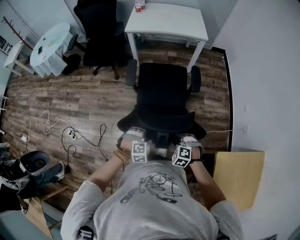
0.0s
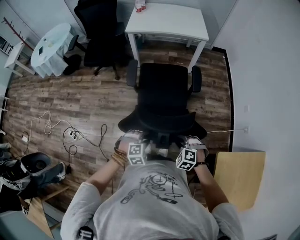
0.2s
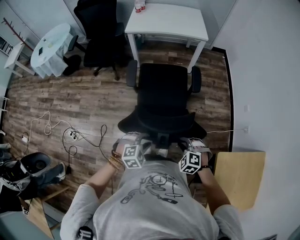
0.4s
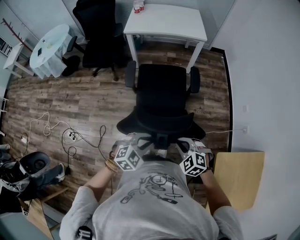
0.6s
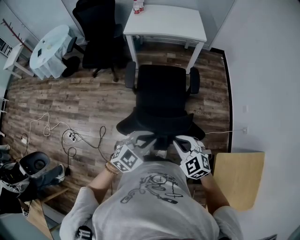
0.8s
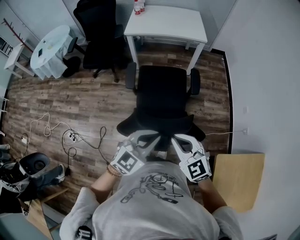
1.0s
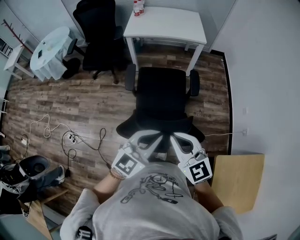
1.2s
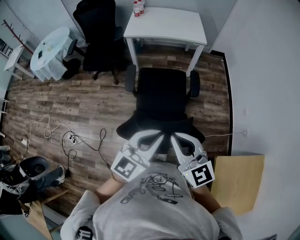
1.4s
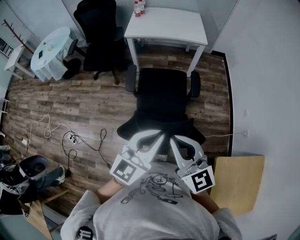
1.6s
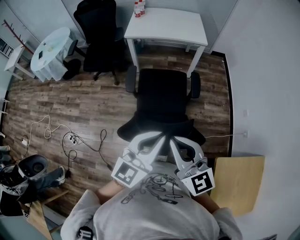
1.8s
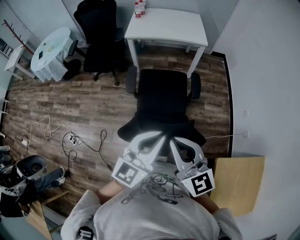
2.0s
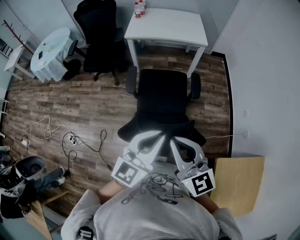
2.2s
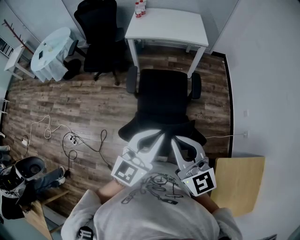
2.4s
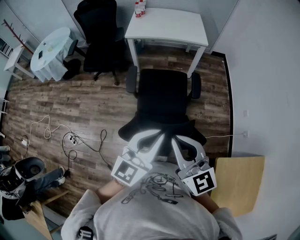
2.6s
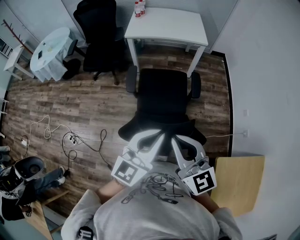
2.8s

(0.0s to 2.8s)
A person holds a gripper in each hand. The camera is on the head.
0.0s - 1.4s: Both grippers travel together upward, some 35 cm. The right gripper tips its fingers upward by some 60 degrees, and closes; the left gripper tilts its fingers about 60 degrees upward, and closes up.
1.4s - 2.8s: There are only small adjustments of the grippers.

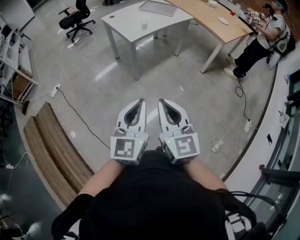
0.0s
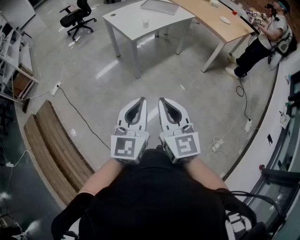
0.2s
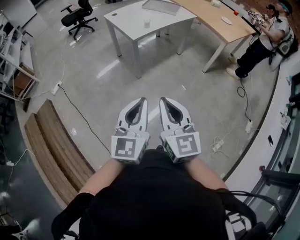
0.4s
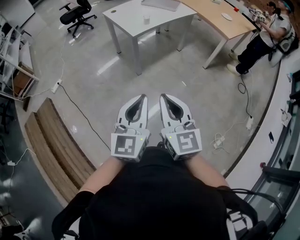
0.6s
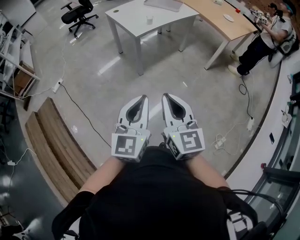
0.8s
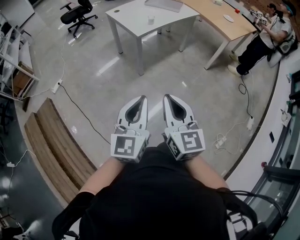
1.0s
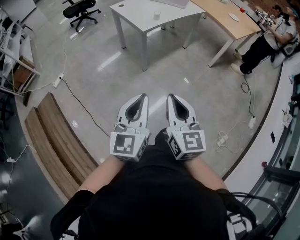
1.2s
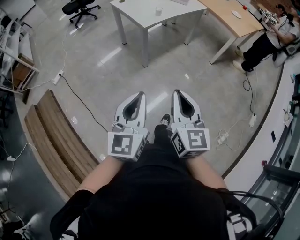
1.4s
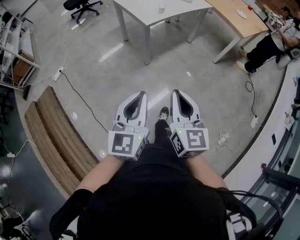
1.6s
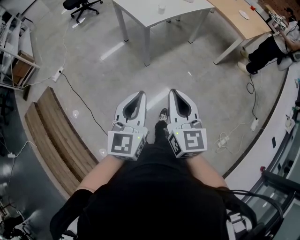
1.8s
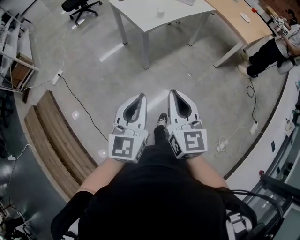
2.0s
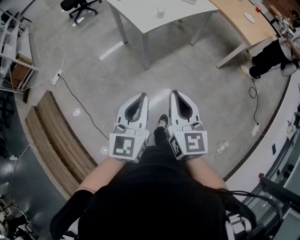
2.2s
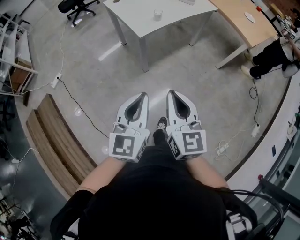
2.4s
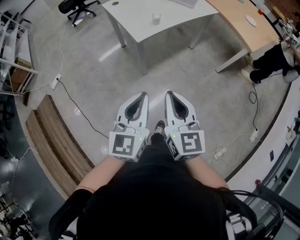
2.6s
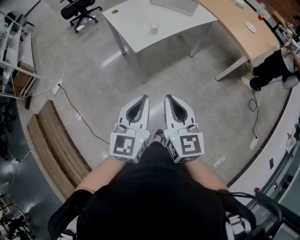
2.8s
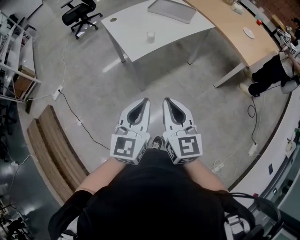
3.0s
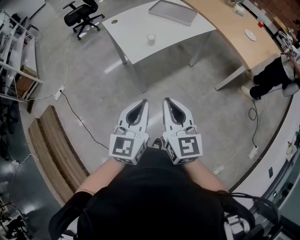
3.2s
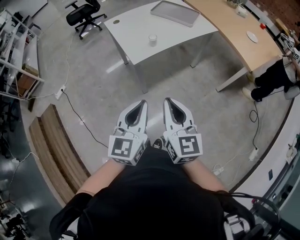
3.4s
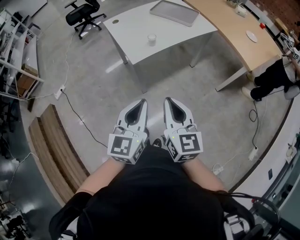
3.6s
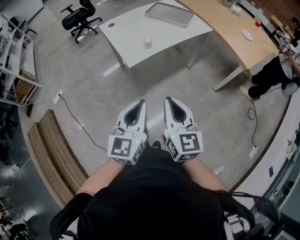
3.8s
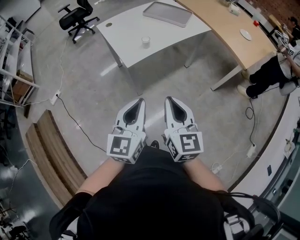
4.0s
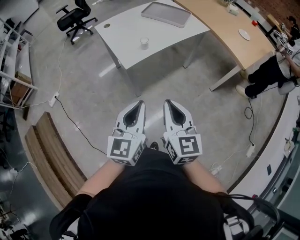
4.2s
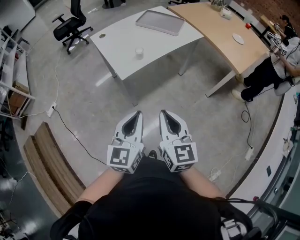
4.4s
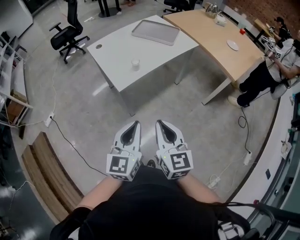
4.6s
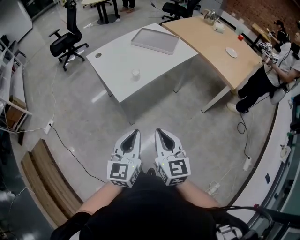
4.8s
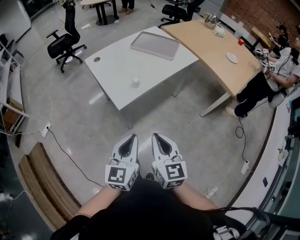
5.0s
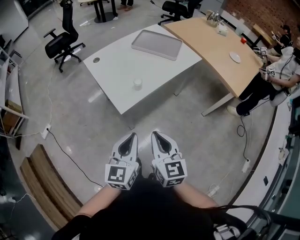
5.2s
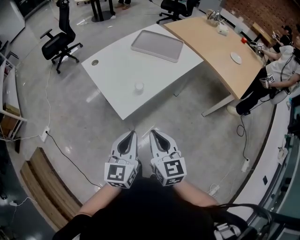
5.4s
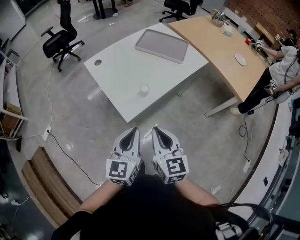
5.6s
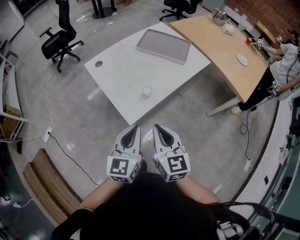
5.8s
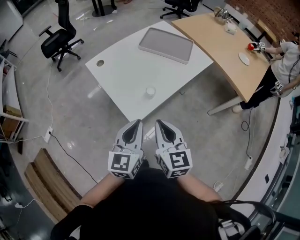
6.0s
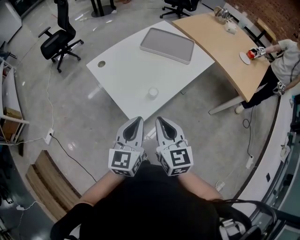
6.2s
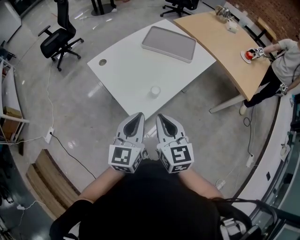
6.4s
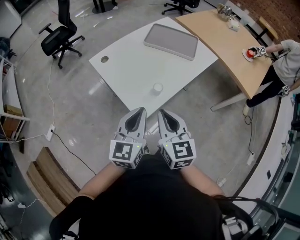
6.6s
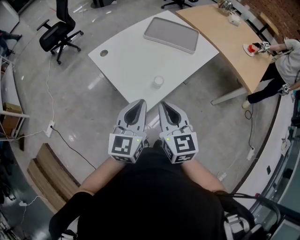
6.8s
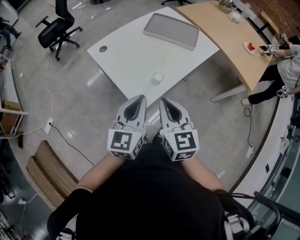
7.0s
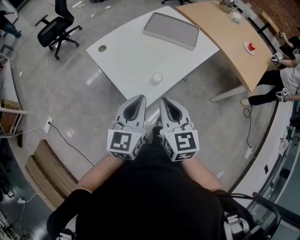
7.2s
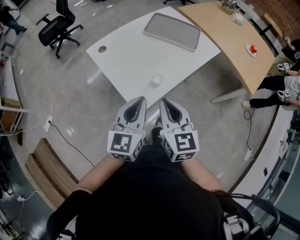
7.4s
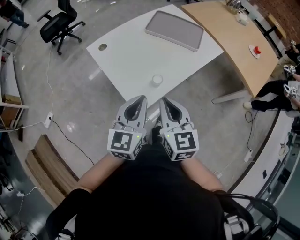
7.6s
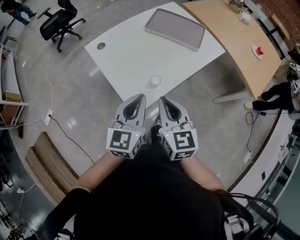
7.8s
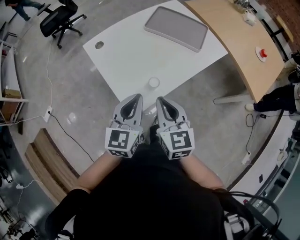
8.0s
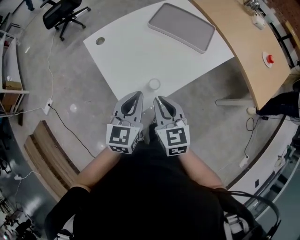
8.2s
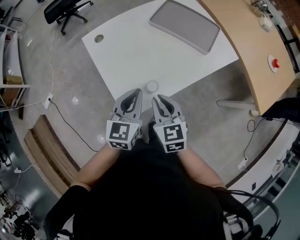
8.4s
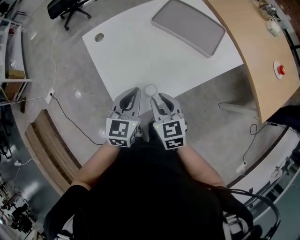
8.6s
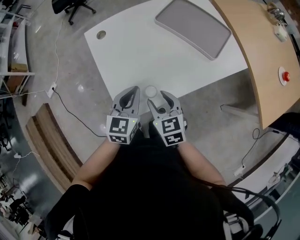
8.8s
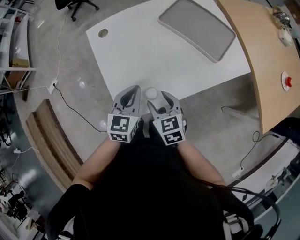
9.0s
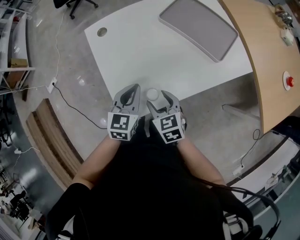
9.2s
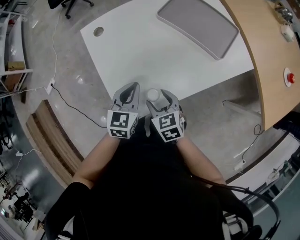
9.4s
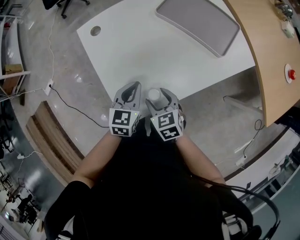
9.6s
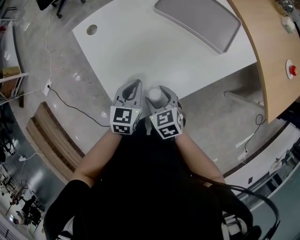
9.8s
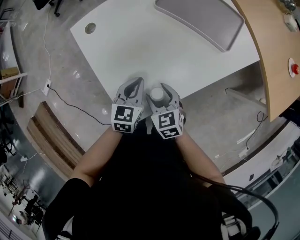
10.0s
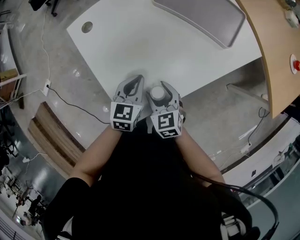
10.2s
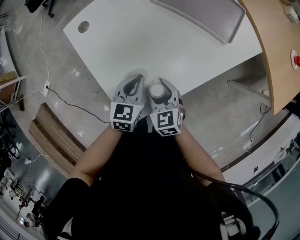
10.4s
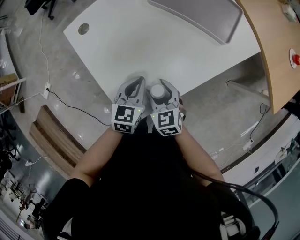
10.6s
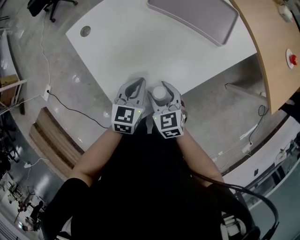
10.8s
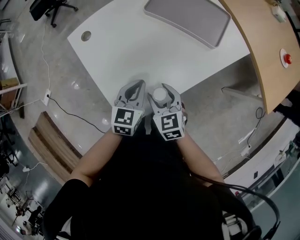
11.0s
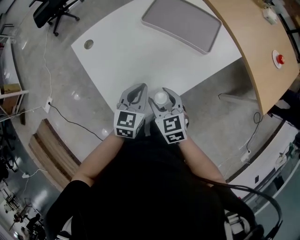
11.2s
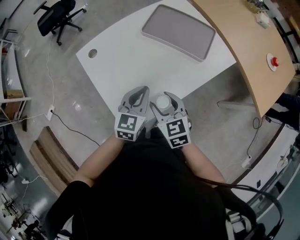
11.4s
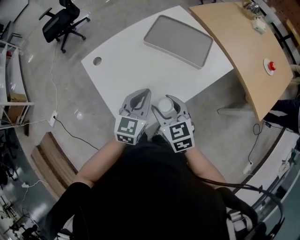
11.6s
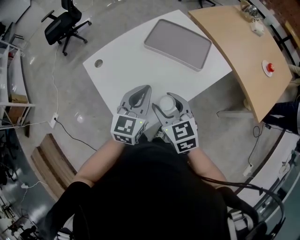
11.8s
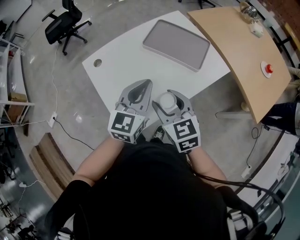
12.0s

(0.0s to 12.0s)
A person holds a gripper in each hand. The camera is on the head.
0.0s - 1.6s: The left gripper shifts some 10 cm to the left; the right gripper heads forward, downward and to the left, covering some 10 cm.
1.6s - 3.0s: The right gripper goes roughly 30 cm forward. The left gripper moves forward and to the right, roughly 35 cm.
3.0s - 4.4s: The right gripper changes place by some 5 cm. The left gripper moves forward, approximately 5 cm.
4.4s - 6.0s: The left gripper shifts some 30 cm forward; the right gripper shifts some 30 cm forward and to the left.
6.0s - 7.6s: Both grippers travel together forward, roughly 5 cm.
7.6s - 9.0s: The right gripper shifts roughly 25 cm downward and forward, swivels some 40 degrees, and opens its fingers; the left gripper is displaced forward and downward by approximately 25 cm, and swivels approximately 20 degrees.
9.0s - 10.4s: Both grippers travel together downward, roughly 10 cm.
10.4s - 12.0s: The grippers both shift upward by roughly 25 cm. The left gripper rotates about 30 degrees.

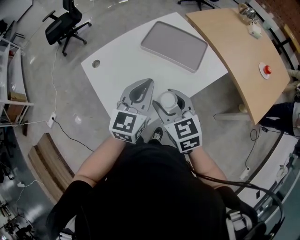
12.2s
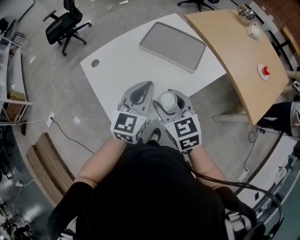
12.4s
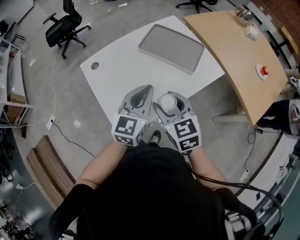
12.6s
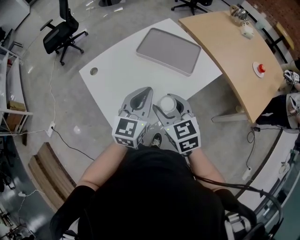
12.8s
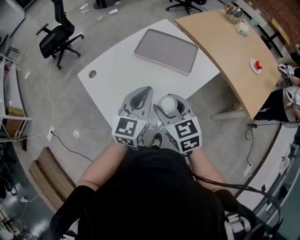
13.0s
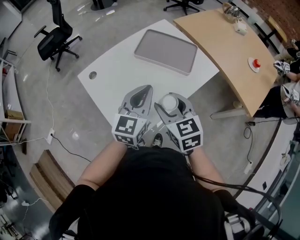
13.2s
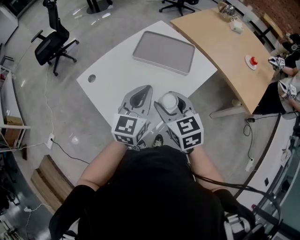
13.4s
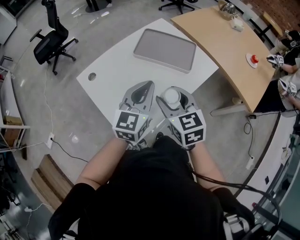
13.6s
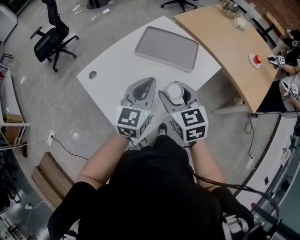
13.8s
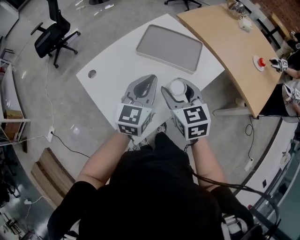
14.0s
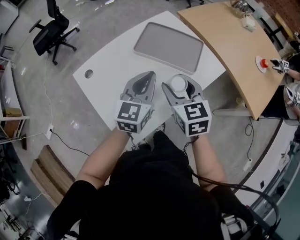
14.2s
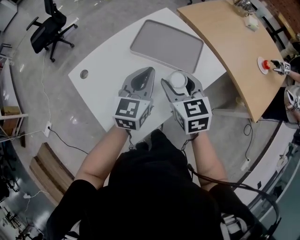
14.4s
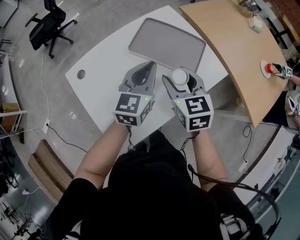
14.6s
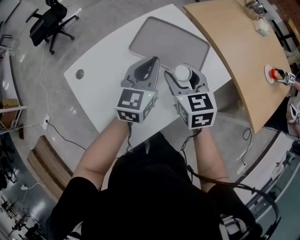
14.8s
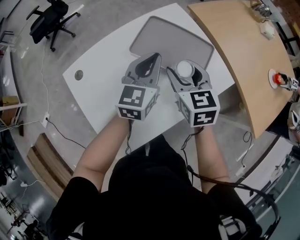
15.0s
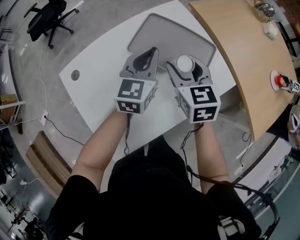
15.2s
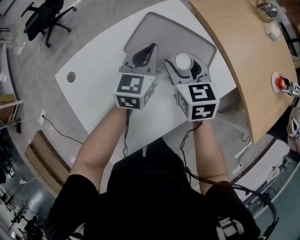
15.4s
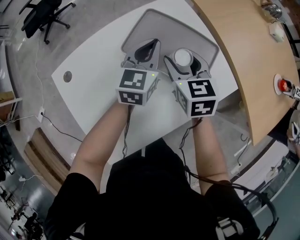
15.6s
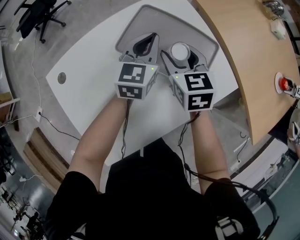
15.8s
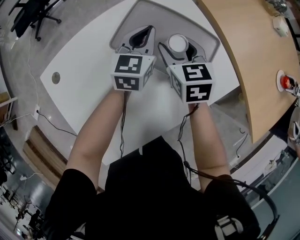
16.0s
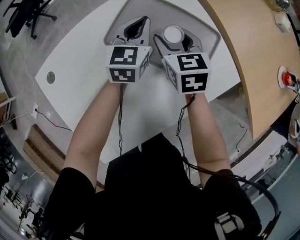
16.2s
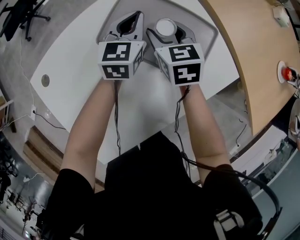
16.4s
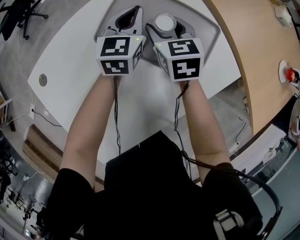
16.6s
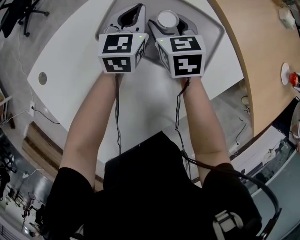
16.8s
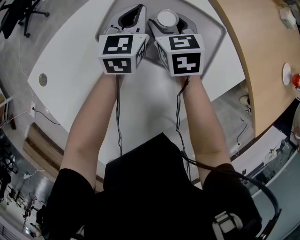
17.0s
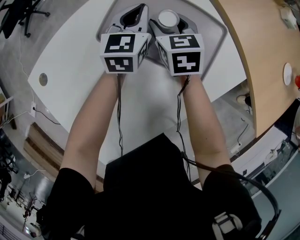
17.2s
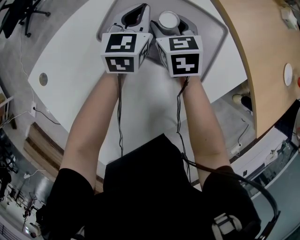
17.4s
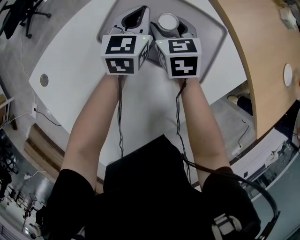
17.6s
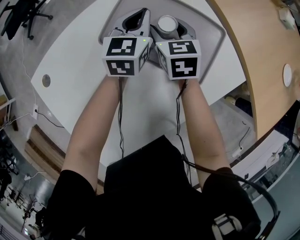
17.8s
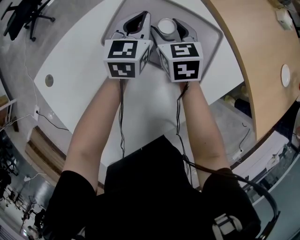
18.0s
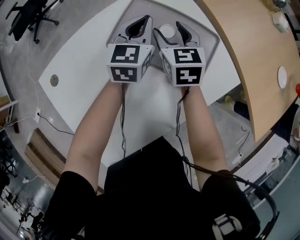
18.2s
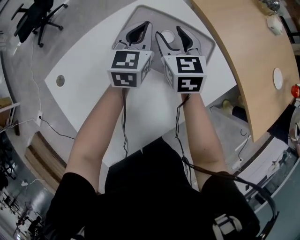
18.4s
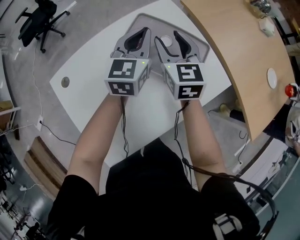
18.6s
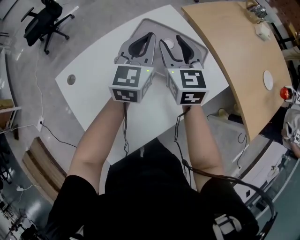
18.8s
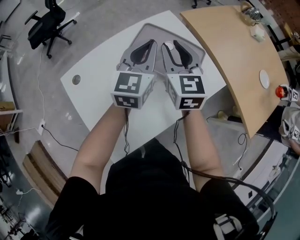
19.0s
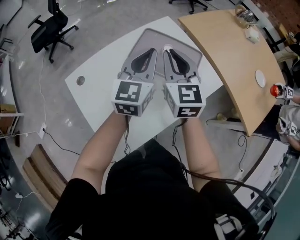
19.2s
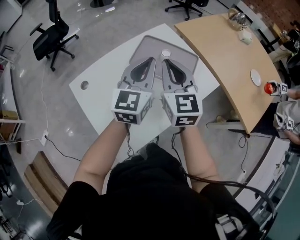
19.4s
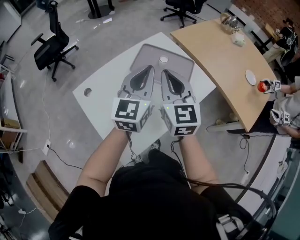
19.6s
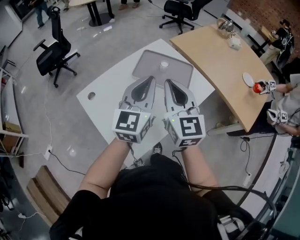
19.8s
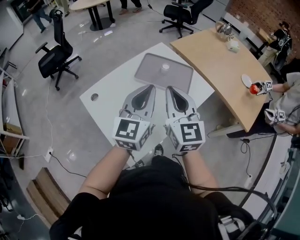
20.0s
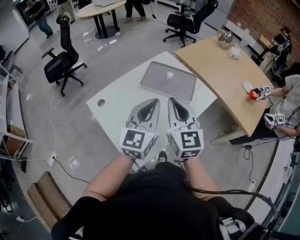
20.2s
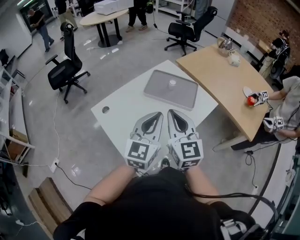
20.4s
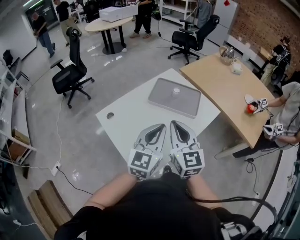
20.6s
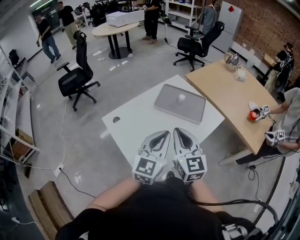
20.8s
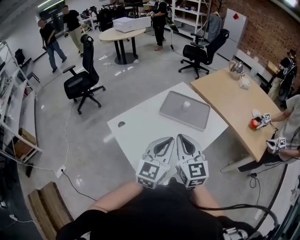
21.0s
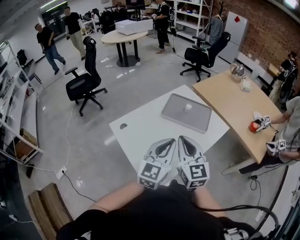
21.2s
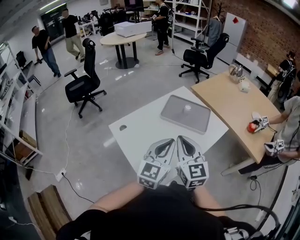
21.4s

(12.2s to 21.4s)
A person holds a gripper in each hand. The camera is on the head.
12.2s - 13.8s: The grippers make only small movements.
13.8s - 15.2s: The grippers both shift forward by some 25 cm.
15.2s - 16.8s: The left gripper travels forward and downward by about 20 cm; the right gripper shifts about 25 cm downward and forward.
16.8s - 18.4s: The grippers both shift upward by approximately 10 cm.
18.4s - 19.8s: Both grippers travel together backward and upward, about 40 cm. The right gripper swivels about 20 degrees, and closes.
19.8s - 21.4s: The right gripper shifts roughly 15 cm backward and to the left. Meanwhile the left gripper goes some 15 cm backward.
